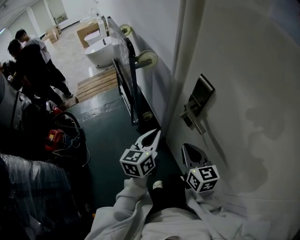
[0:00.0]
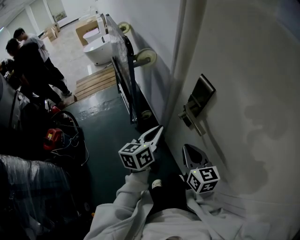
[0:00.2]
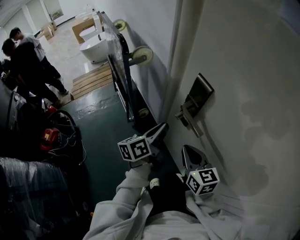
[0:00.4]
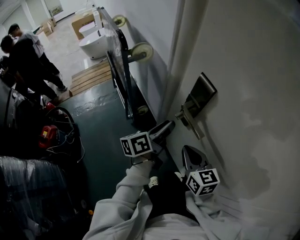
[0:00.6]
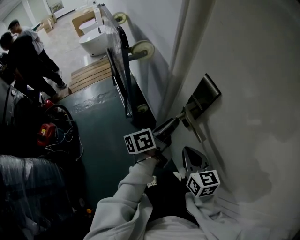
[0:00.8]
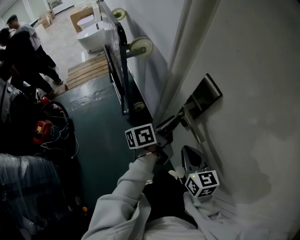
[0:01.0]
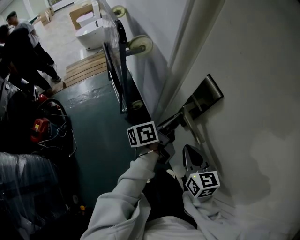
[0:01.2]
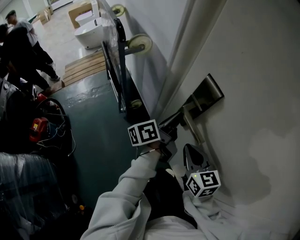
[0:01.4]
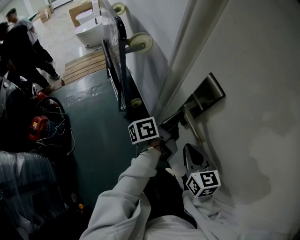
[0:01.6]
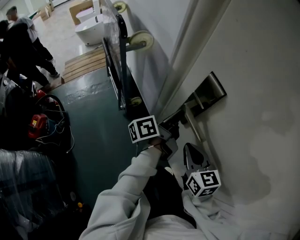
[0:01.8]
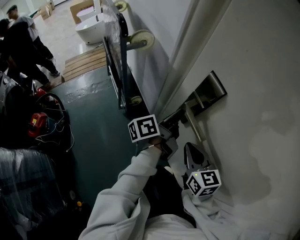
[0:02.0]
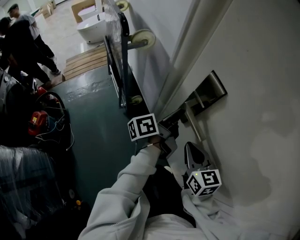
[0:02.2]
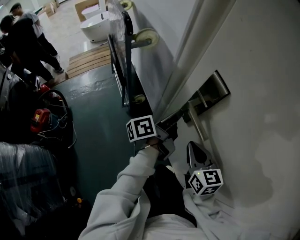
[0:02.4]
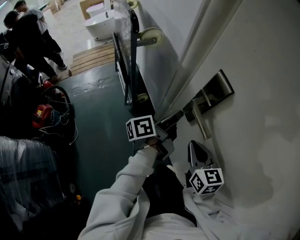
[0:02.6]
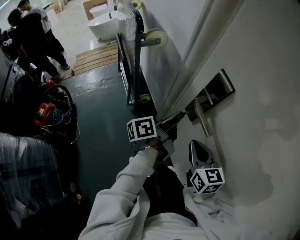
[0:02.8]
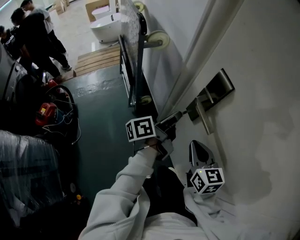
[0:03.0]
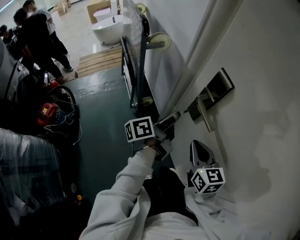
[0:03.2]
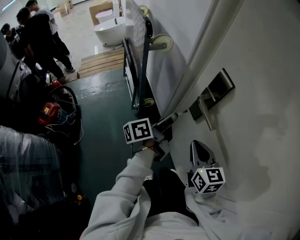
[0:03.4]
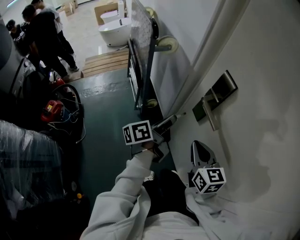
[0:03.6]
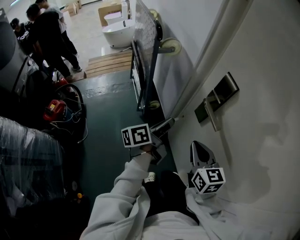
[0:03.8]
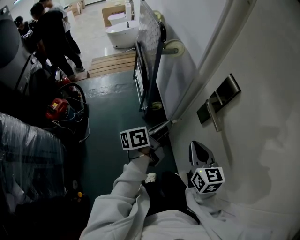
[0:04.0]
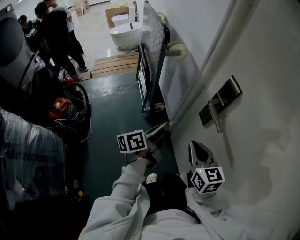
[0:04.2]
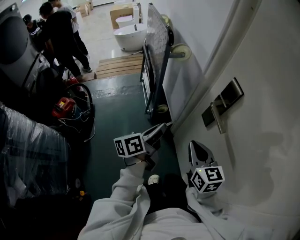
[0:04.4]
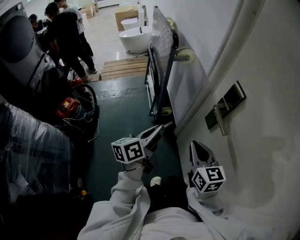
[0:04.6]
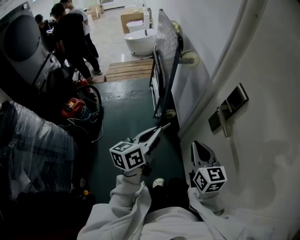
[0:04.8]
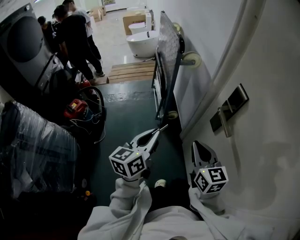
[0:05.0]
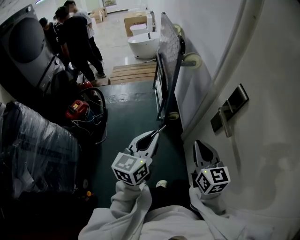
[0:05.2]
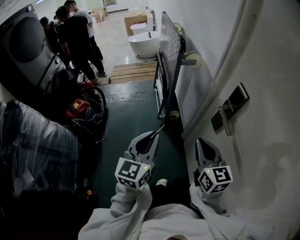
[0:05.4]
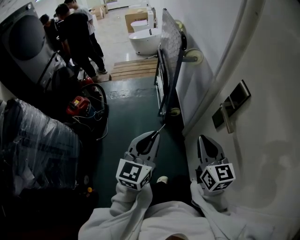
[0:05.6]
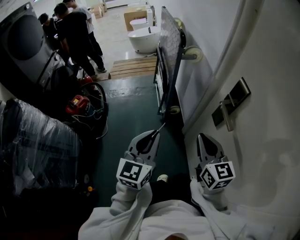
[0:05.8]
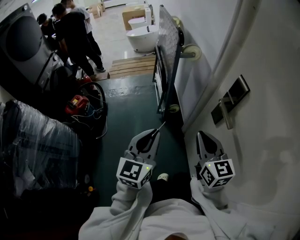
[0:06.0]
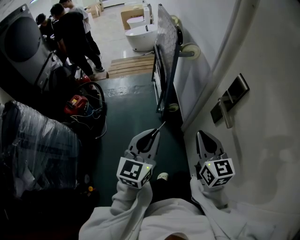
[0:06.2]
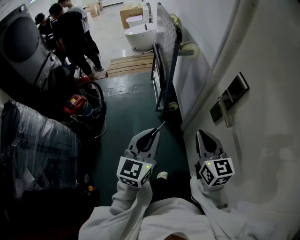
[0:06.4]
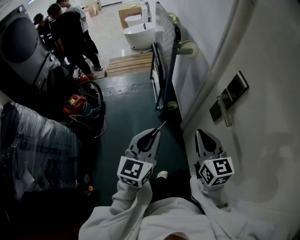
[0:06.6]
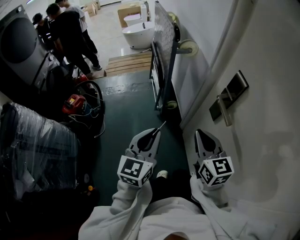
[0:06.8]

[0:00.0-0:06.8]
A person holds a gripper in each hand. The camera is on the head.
0:00.0 to 0:01.4: The left gripper moves forward and to the right, about 15 cm, and rolls counterclockwise, seen from behind, by some 50 degrees, while the right gripper changes place by about 5 cm.
0:01.4 to 0:02.8: The grippers make only small movements.
0:02.8 to 0:04.0: The right gripper travels to the left by some 5 cm; the left gripper travels to the left and backward by about 10 cm.
0:04.0 to 0:05.4: The left gripper heads to the left, backward and upward, covering roughly 15 cm, and rolls clockwise, seen from behind, by some 60 degrees. The right gripper travels upward by some 5 cm.
0:05.4 to 0:06.8: The grippers make only small movements.

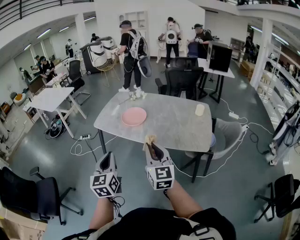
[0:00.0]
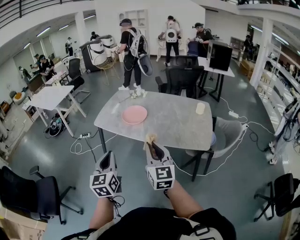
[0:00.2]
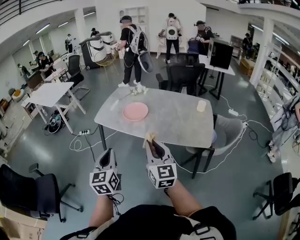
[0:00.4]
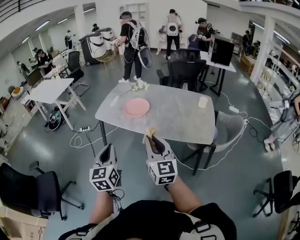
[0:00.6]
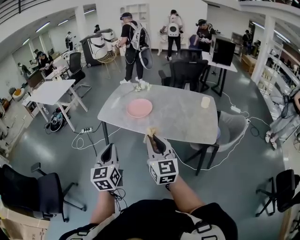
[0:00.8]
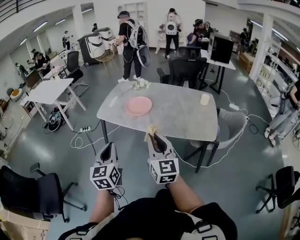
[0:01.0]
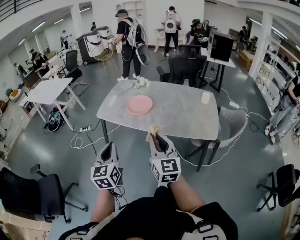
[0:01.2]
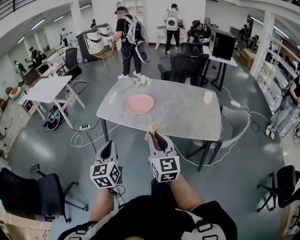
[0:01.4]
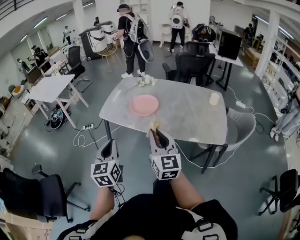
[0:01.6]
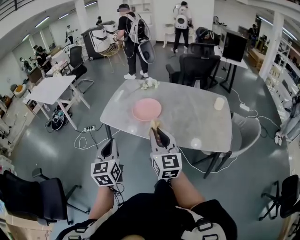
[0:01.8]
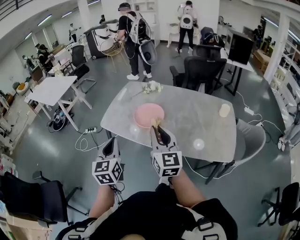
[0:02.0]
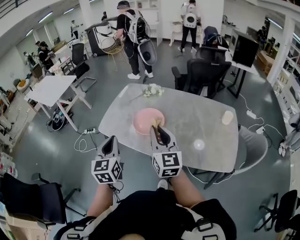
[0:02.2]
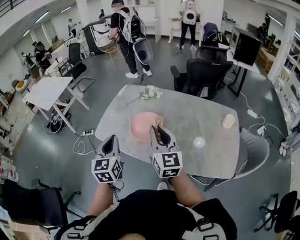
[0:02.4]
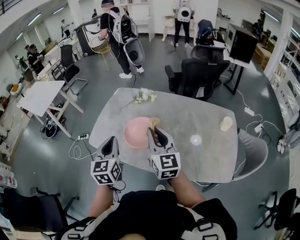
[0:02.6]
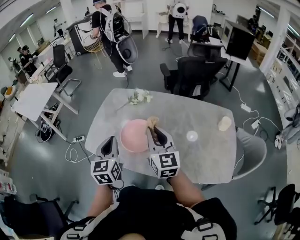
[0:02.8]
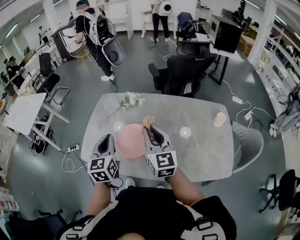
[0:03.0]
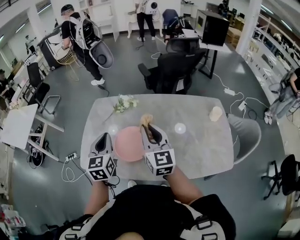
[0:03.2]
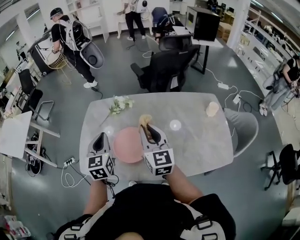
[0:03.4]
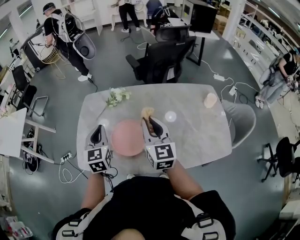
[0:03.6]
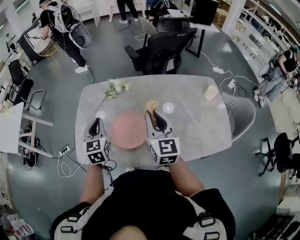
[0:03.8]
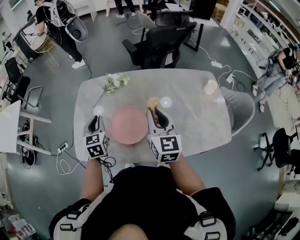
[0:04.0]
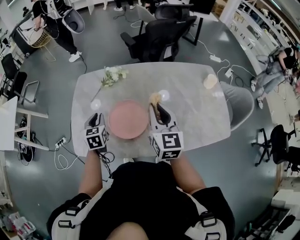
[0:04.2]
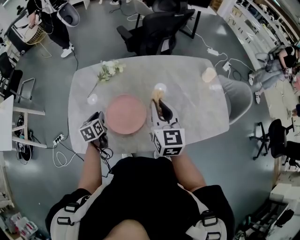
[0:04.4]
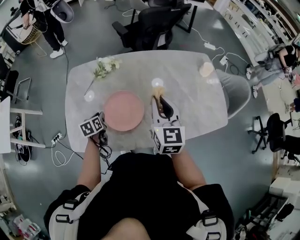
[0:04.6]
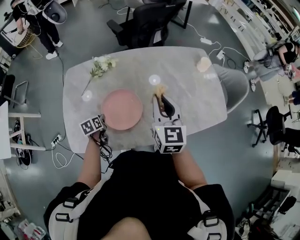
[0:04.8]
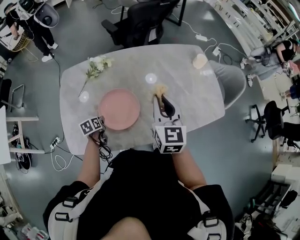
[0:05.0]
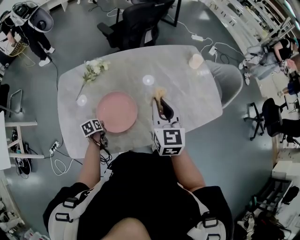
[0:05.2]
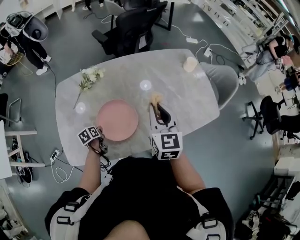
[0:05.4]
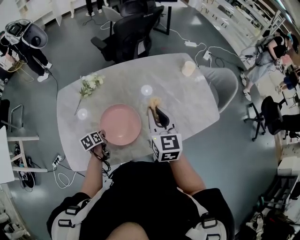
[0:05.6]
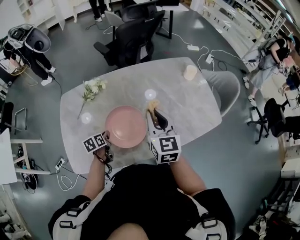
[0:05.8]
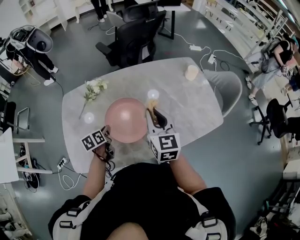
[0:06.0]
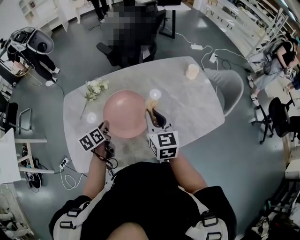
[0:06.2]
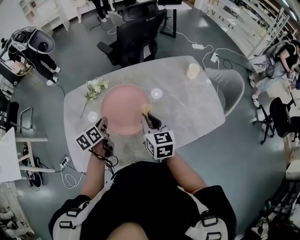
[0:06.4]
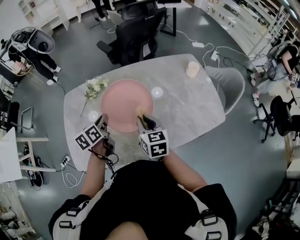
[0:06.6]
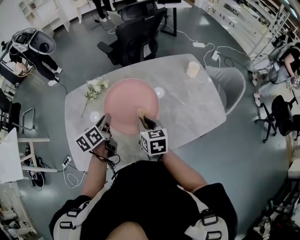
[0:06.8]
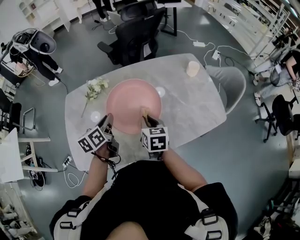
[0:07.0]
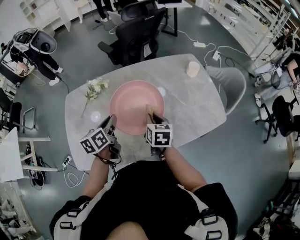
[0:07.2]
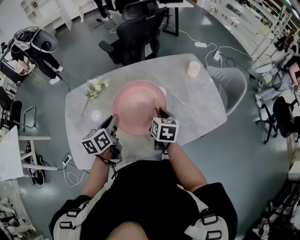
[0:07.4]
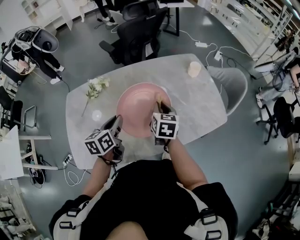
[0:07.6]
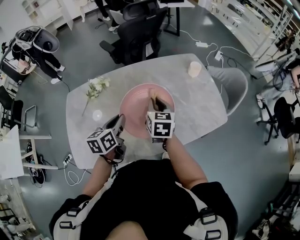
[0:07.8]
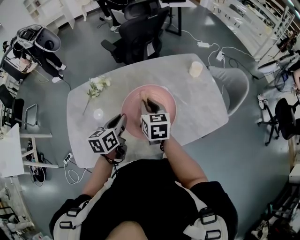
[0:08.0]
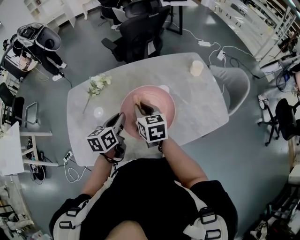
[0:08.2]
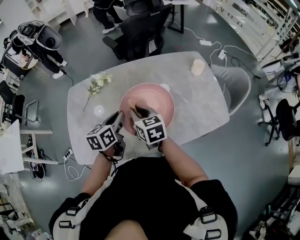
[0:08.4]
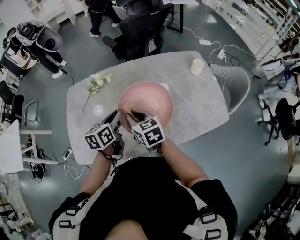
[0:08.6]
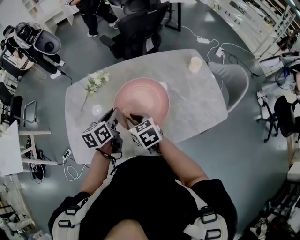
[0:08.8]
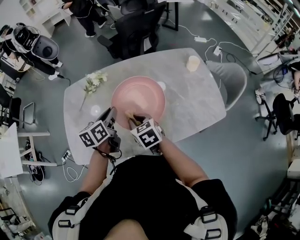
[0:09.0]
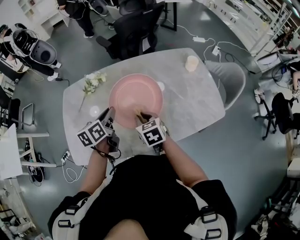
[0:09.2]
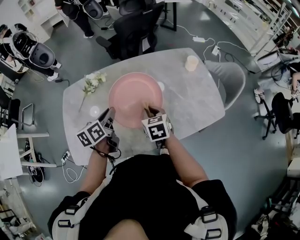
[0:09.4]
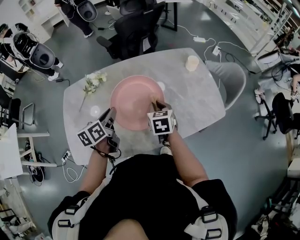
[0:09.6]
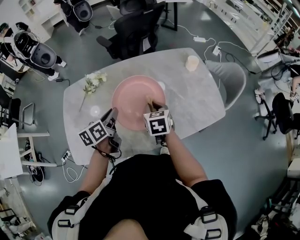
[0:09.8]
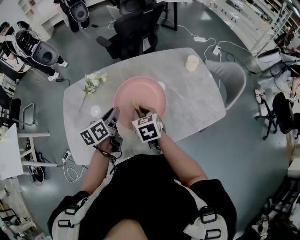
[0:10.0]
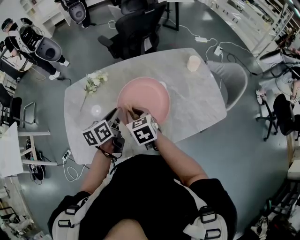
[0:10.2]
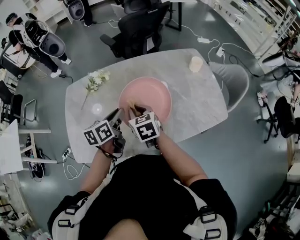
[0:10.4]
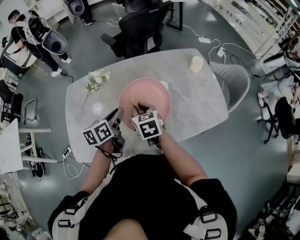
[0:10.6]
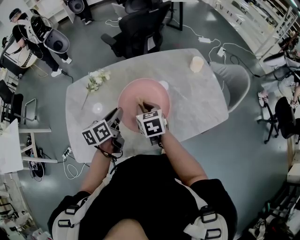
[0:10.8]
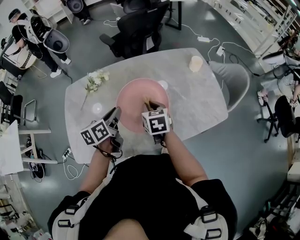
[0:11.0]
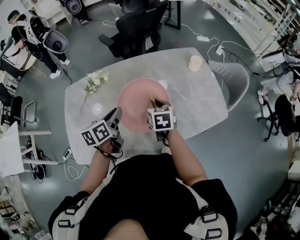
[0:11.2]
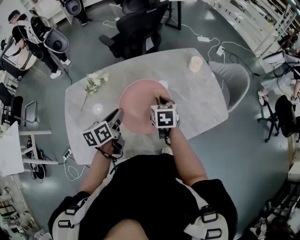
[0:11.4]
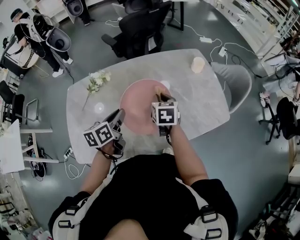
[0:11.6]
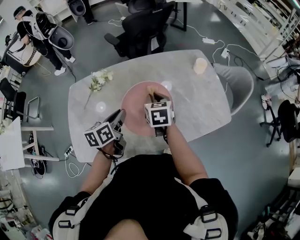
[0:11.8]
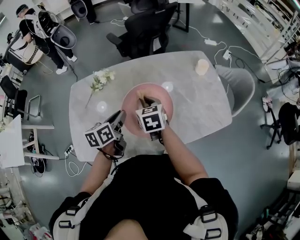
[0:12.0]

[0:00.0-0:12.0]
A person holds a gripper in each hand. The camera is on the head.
0:00.0 to 0:01.6: Both grippers move forward and to the left, approximately 10 cm.
0:01.6 to 0:03.0: Both grippers move forward, roughly 40 cm.
0:03.0 to 0:04.4: The right gripper ends up approximately 5 cm from where it was, and turns by roughly 20 degrees. The left gripper shifts some 25 cm downward and forward, and turns by about 30 degrees.
0:04.4 to 0:06.0: The right gripper travels to the right by approximately 5 cm. The left gripper moves to the right, roughly 10 cm, and moves about 15 cm downward and comes back.
0:06.0 to 0:07.6: The right gripper travels downward and to the right by approximately 10 cm, and rotates roughly 30 degrees. The left gripper heads upward and to the right, covering approximately 15 cm, and turns by roughly 20 degrees.
0:07.6 to 0:09.0: The right gripper goes some 15 cm to the left and backward, and rotates roughly 40 degrees.
0:09.0 to 0:10.4: The right gripper travels to the right and back again, some 10 cm each way.
0:10.4 to 0:12.0: The right gripper reaches roughly 10 cm to the right, then returns.

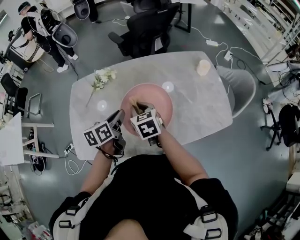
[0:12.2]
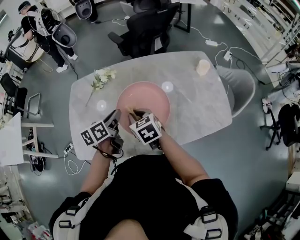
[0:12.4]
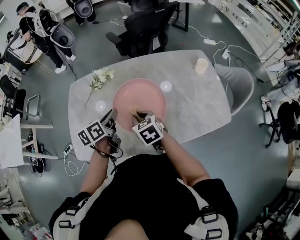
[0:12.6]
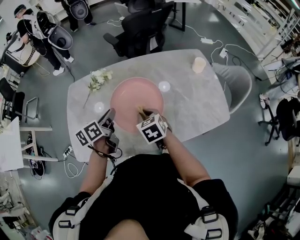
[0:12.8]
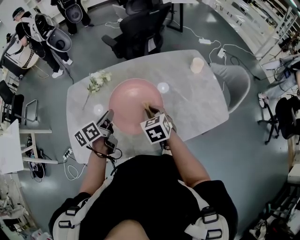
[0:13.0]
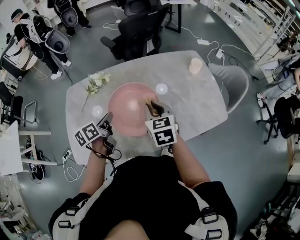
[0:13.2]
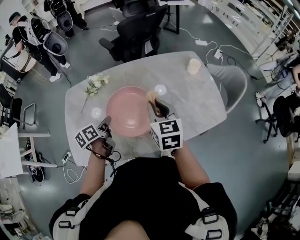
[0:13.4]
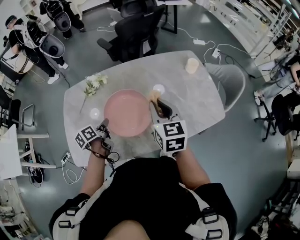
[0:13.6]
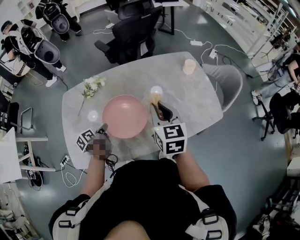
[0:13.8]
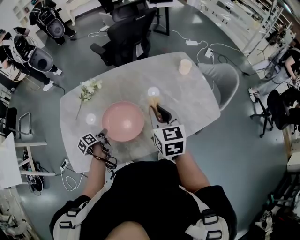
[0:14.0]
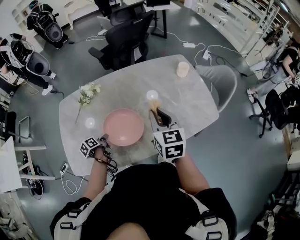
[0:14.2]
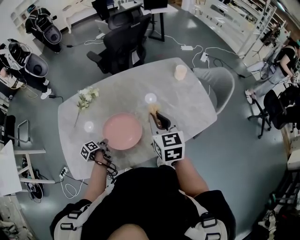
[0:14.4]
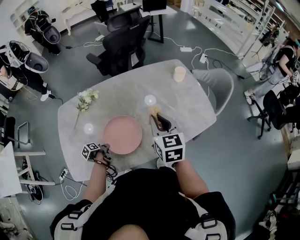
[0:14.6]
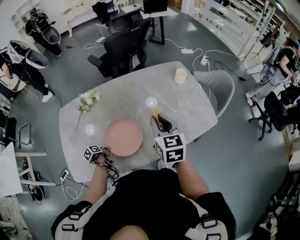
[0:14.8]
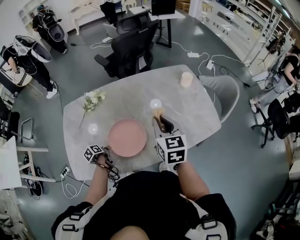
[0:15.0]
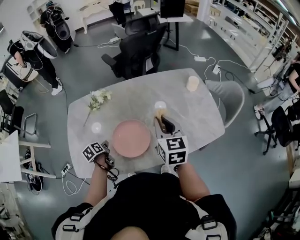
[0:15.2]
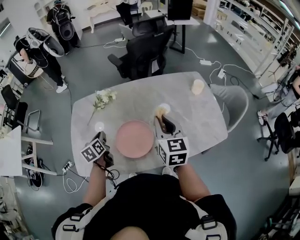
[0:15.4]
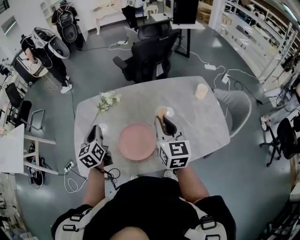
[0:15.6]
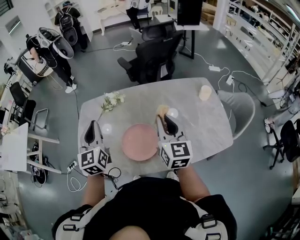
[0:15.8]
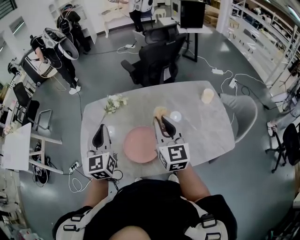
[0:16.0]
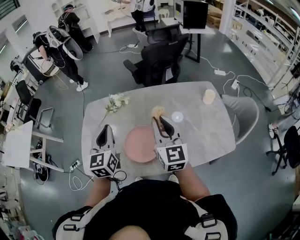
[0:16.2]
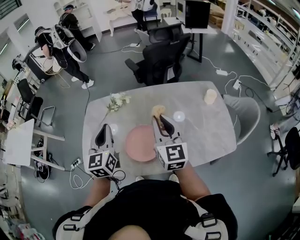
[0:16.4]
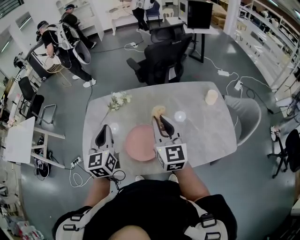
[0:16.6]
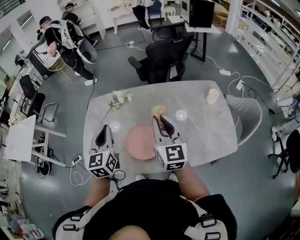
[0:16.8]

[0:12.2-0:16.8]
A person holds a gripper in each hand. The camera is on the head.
0:12.2 to 0:13.8: The right gripper travels to the right and upward by approximately 15 cm, and changes its angle by approximately 30 degrees. The left gripper is displaced downward and to the left by about 15 cm, and swivels about 30 degrees.
0:13.8 to 0:15.2: The left gripper moves some 15 cm downward and comes back, and changes its angle by some 20 degrees.
0:15.2 to 0:16.8: The left gripper travels upward by some 30 cm, and tilts its fingers about 40 degrees upward, while the right gripper shifts approximately 10 cm upward and to the left, and turns by roughly 20 degrees.
